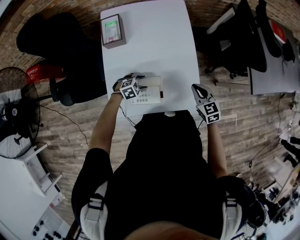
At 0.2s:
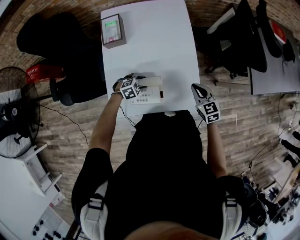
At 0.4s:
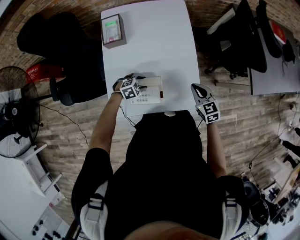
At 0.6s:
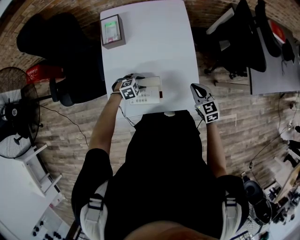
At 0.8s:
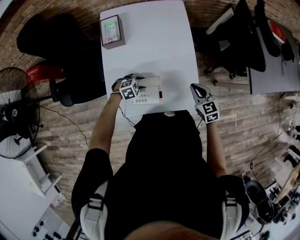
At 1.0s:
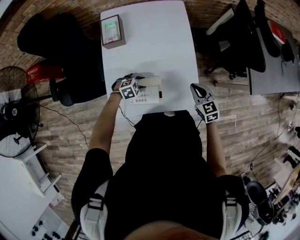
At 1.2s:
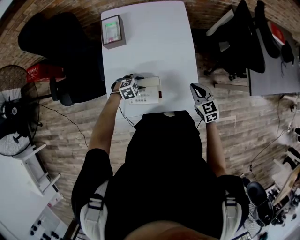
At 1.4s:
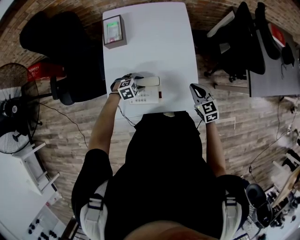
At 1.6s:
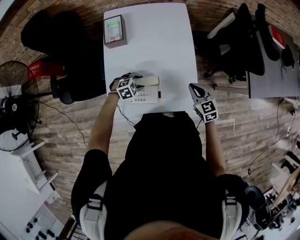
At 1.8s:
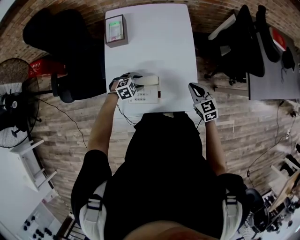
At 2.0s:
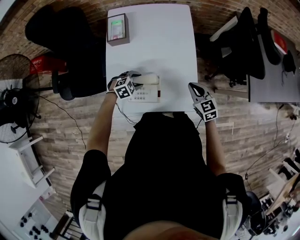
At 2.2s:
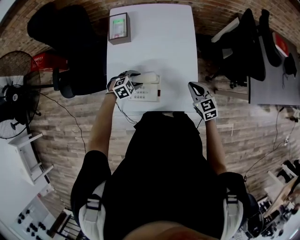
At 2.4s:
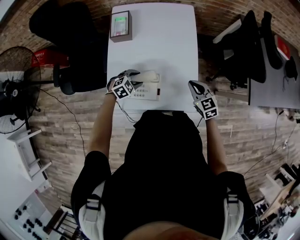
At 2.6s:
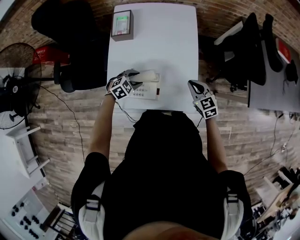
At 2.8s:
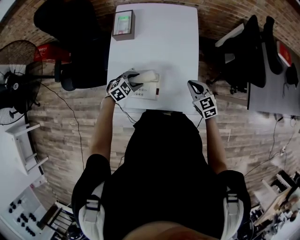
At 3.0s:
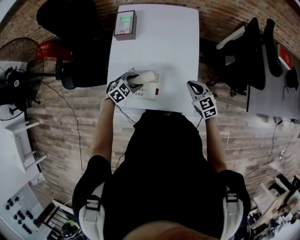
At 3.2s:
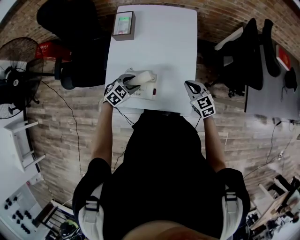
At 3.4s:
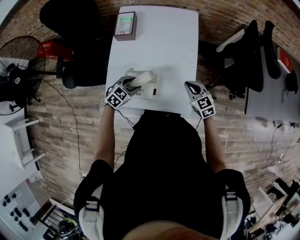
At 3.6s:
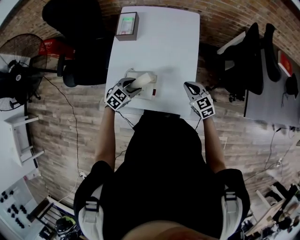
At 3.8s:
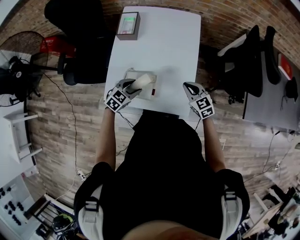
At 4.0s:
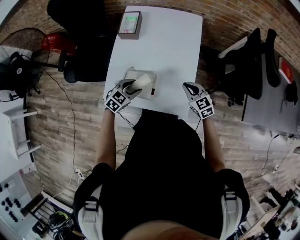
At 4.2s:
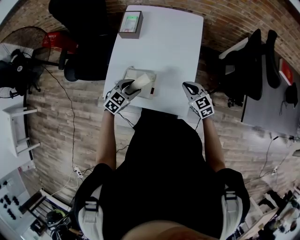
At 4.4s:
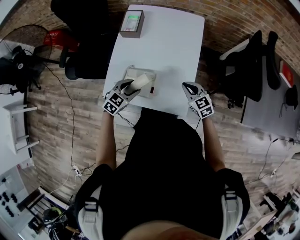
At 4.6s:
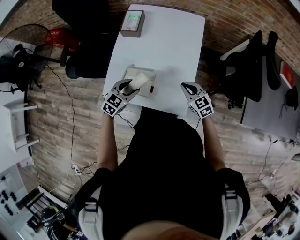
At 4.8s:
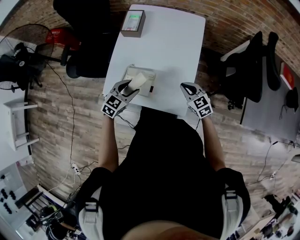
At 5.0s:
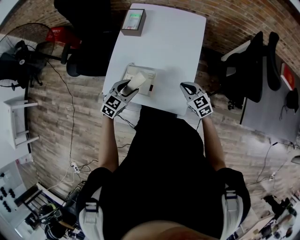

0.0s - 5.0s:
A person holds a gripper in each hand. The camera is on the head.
0.0s - 1.6s: There are only small adjustments of the grippers.
1.6s - 3.4s: The left gripper heads upward, covering roughly 10 cm, and turns by roughly 30 degrees.
3.4s - 5.0s: The left gripper goes roughly 10 cm upward and backward.

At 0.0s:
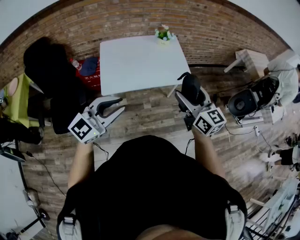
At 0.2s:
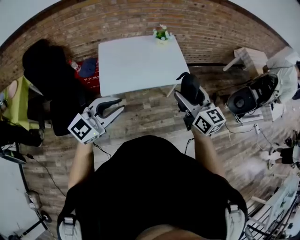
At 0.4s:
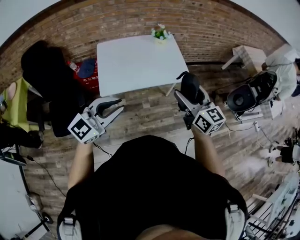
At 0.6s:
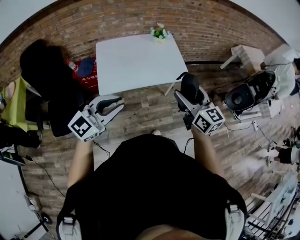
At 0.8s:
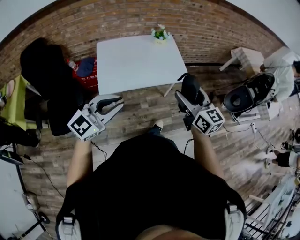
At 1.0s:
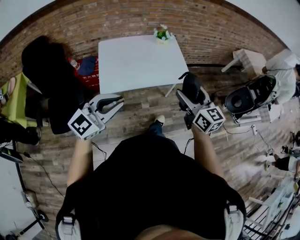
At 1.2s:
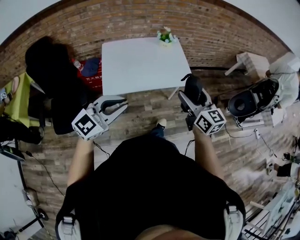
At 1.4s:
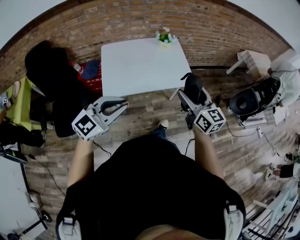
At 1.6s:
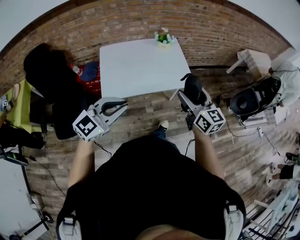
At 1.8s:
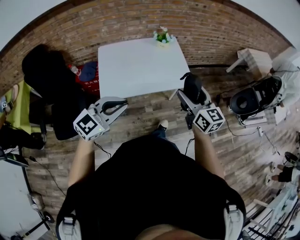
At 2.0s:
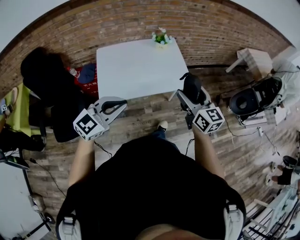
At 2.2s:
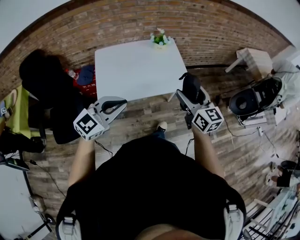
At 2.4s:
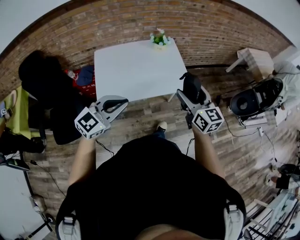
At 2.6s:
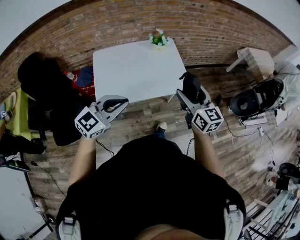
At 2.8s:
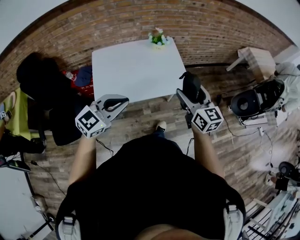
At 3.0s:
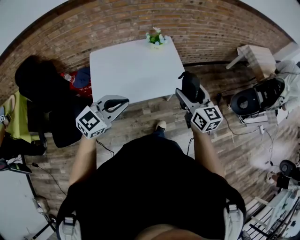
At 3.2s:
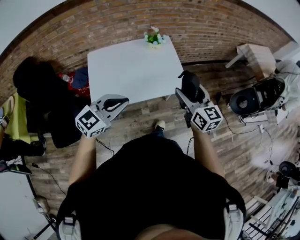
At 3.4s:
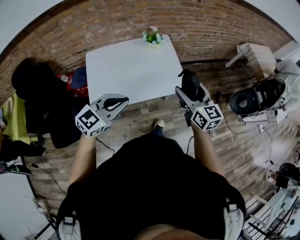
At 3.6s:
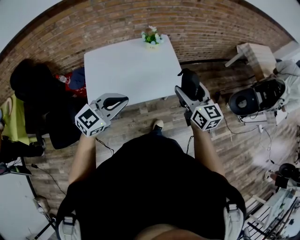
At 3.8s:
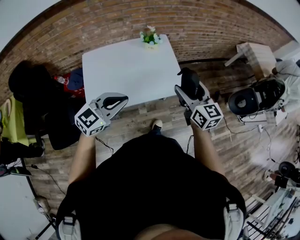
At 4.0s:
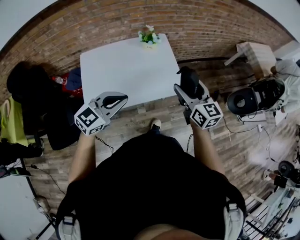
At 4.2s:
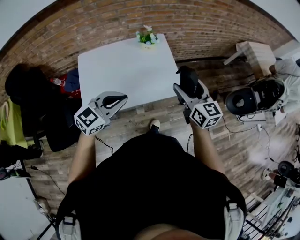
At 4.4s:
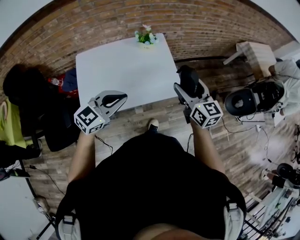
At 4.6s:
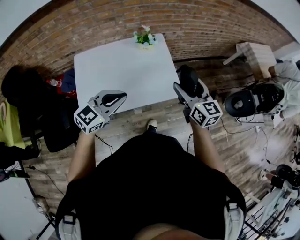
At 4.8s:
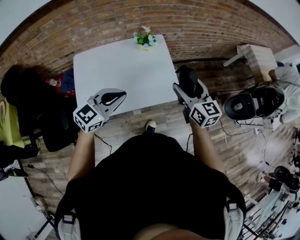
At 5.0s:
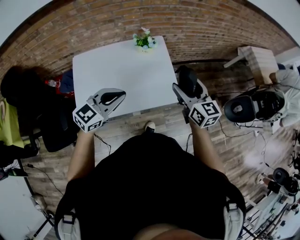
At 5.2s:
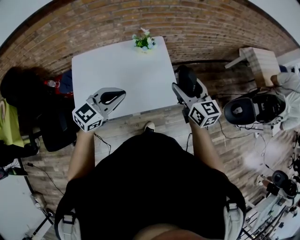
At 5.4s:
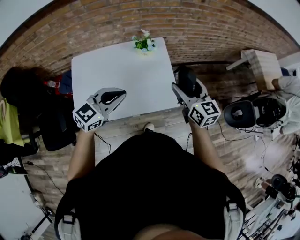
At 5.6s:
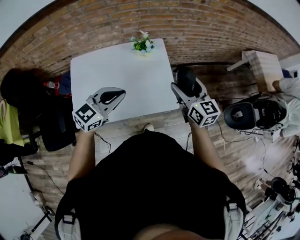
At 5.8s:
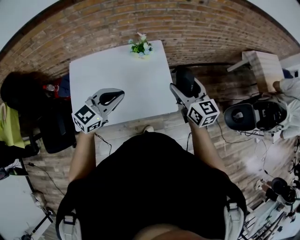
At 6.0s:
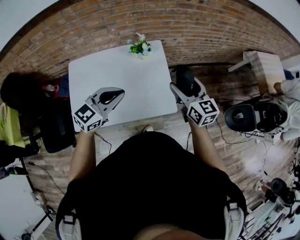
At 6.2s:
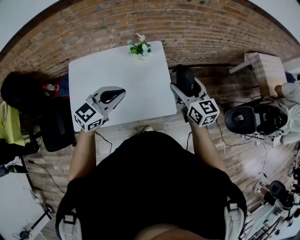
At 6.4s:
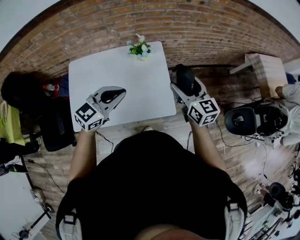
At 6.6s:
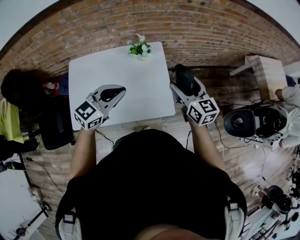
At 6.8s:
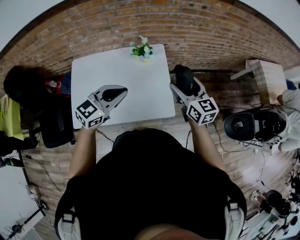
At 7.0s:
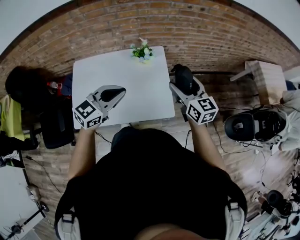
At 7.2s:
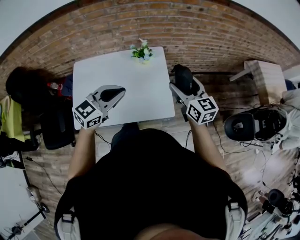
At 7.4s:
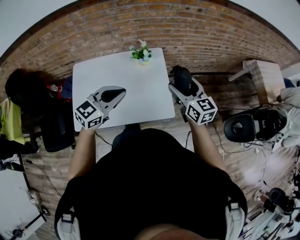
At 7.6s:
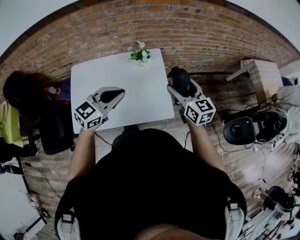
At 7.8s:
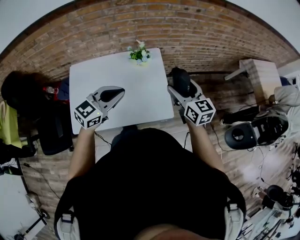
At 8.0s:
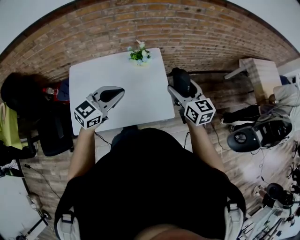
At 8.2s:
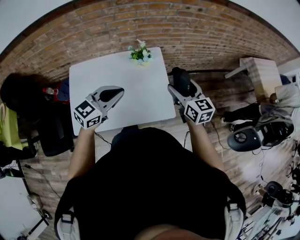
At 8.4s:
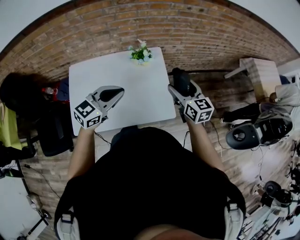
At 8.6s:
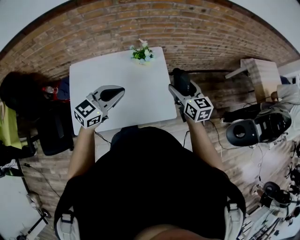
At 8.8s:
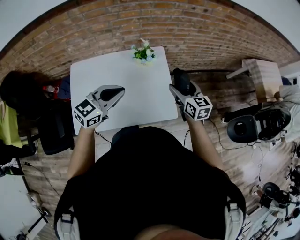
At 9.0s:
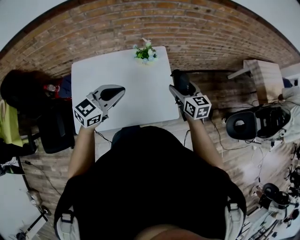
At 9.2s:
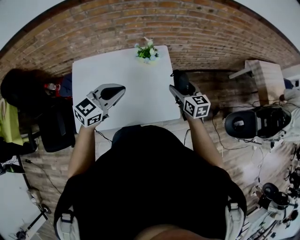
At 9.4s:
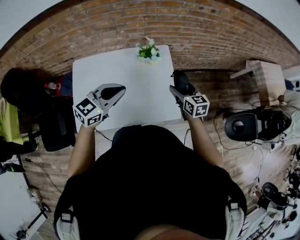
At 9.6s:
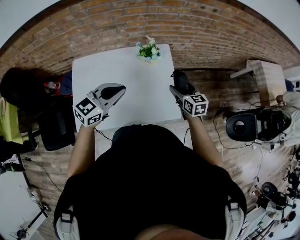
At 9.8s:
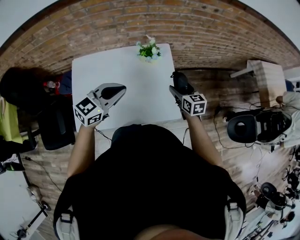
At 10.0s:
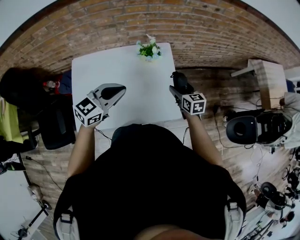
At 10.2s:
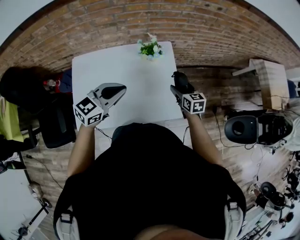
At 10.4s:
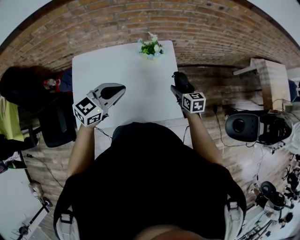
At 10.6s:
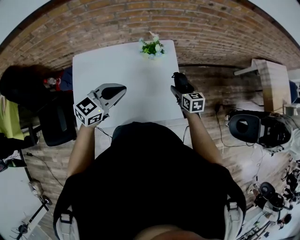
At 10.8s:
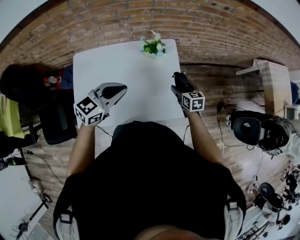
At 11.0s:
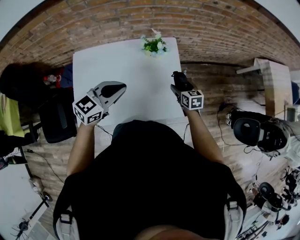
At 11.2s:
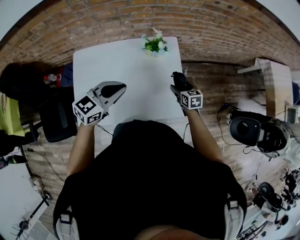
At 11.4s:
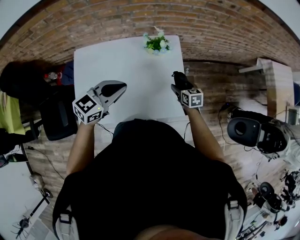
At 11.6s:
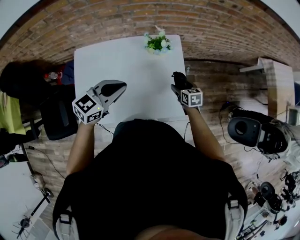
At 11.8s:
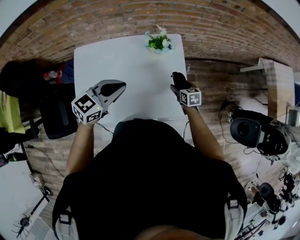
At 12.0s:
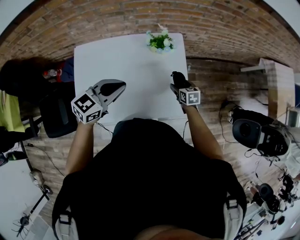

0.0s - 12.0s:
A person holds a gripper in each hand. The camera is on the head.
0.0s - 1.6s: The right gripper changes place by approximately 5 cm.
1.6s - 3.0s: Both grippers travel together forward, roughly 15 cm.
3.0s - 4.4s: Both grippers move forward, some 15 cm.
4.4s - 6.0s: Both grippers travel together forward, approximately 15 cm.
6.0s - 7.6s: There are only small adjustments of the grippers.
7.6s - 9.0s: The right gripper heads downward, covering approximately 10 cm. The left gripper travels to the left by some 5 cm.
9.0s - 10.4s: The right gripper moves downward, some 10 cm.
10.4s - 12.0s: The right gripper is displaced downward by approximately 10 cm.

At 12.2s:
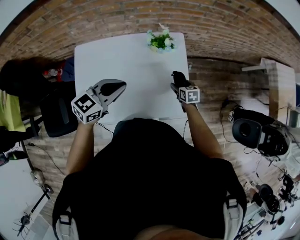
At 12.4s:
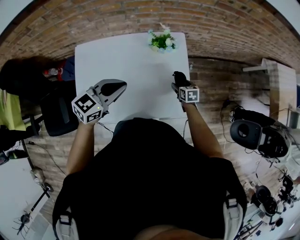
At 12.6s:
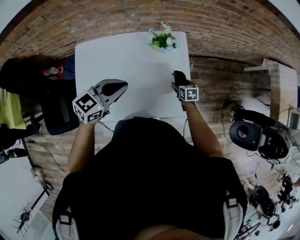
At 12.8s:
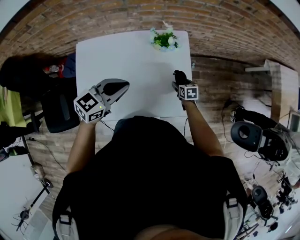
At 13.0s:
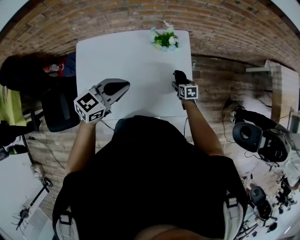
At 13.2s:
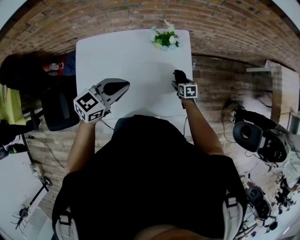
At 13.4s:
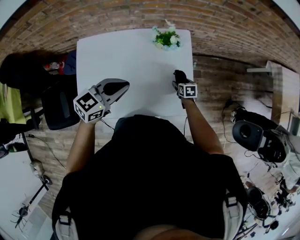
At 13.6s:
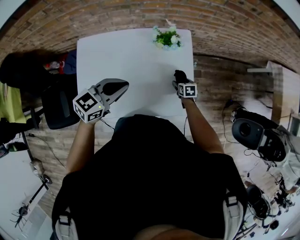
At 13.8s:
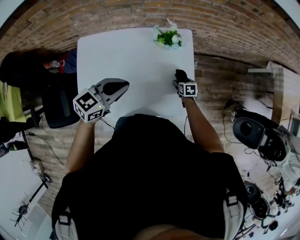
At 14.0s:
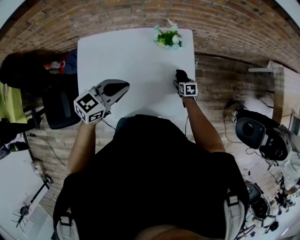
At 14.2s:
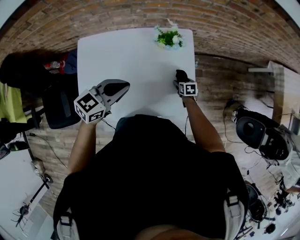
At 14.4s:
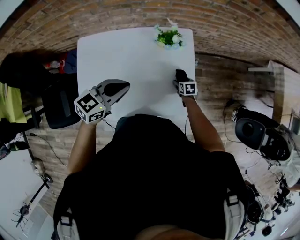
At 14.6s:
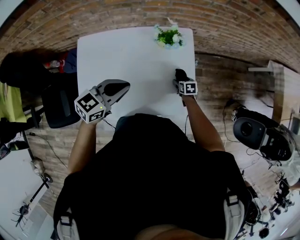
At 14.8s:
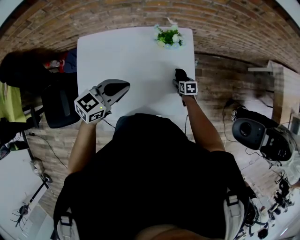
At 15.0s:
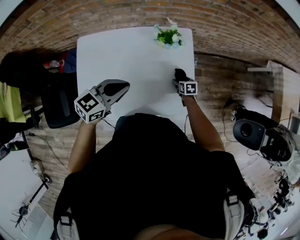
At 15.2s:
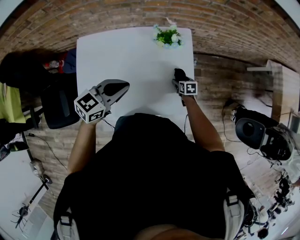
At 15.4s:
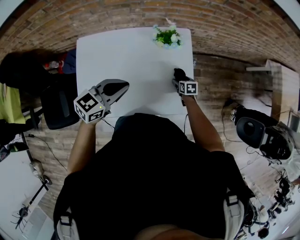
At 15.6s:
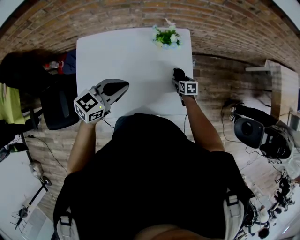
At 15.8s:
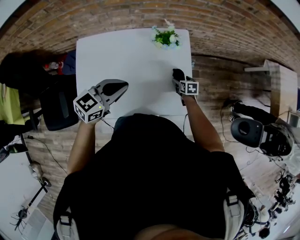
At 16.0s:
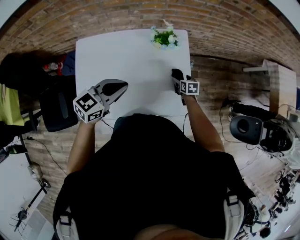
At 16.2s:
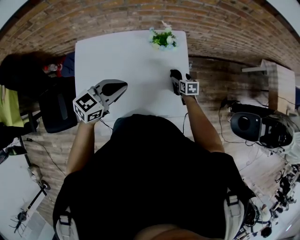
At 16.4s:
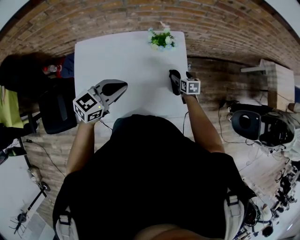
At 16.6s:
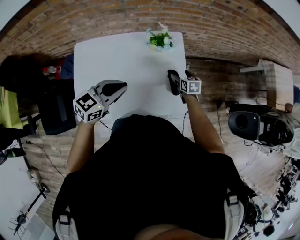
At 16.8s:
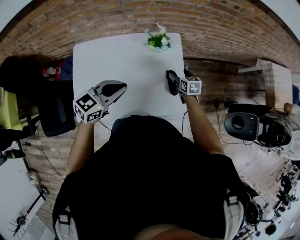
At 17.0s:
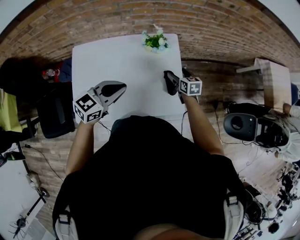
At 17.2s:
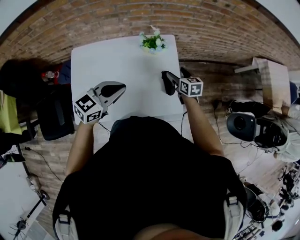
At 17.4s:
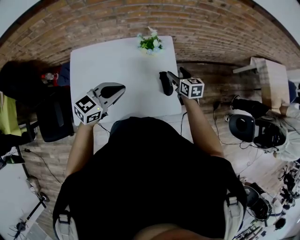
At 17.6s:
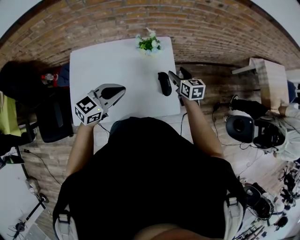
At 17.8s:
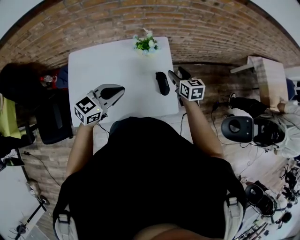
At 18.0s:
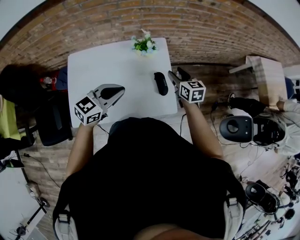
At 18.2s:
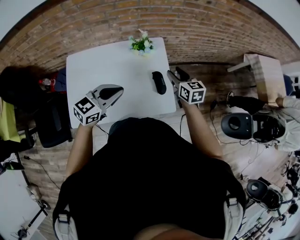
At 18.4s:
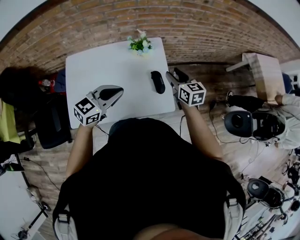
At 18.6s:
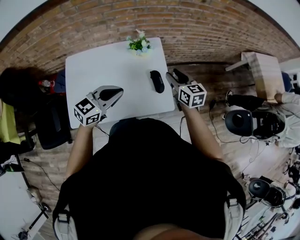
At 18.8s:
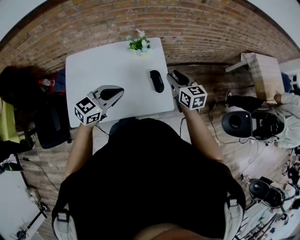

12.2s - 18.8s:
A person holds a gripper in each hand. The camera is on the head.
12.2s - 13.8s: The right gripper moves downward, about 10 cm.
13.8s - 15.4s: Neither gripper changes place.
15.4s - 17.2s: The right gripper heads upward, covering about 20 cm, and rotates approximately 20 degrees; the left gripper ends up some 5 cm from where it was.
17.2s - 18.8s: The left gripper travels to the right by about 5 cm, while the right gripper goes about 15 cm upward and backward, and closes up.
